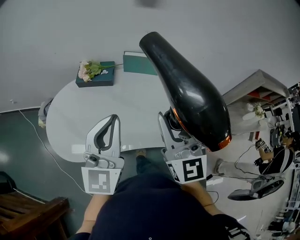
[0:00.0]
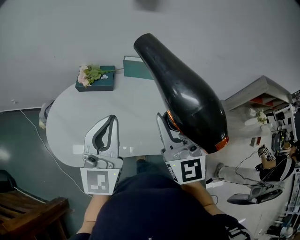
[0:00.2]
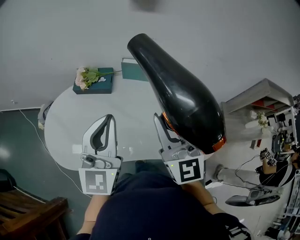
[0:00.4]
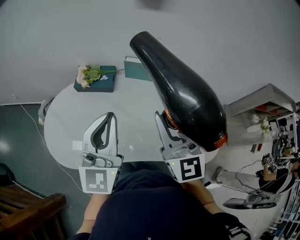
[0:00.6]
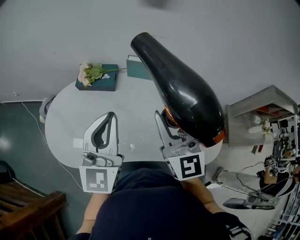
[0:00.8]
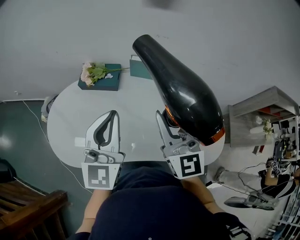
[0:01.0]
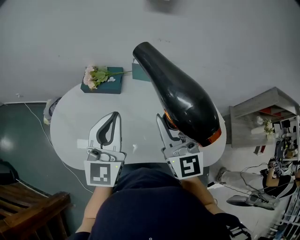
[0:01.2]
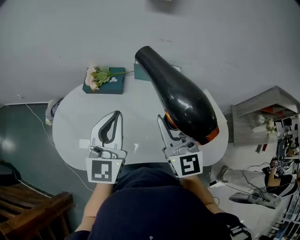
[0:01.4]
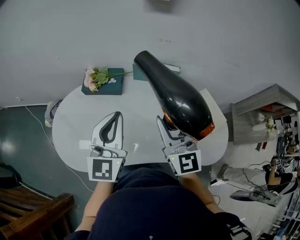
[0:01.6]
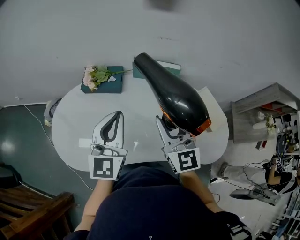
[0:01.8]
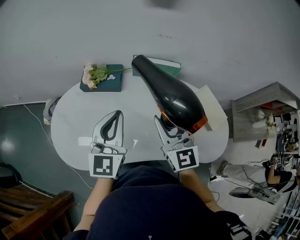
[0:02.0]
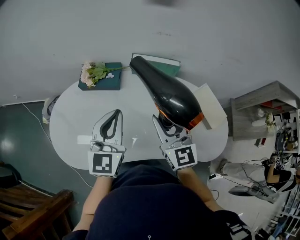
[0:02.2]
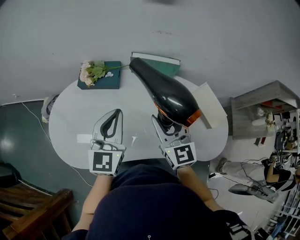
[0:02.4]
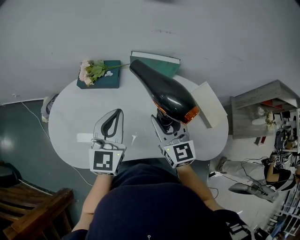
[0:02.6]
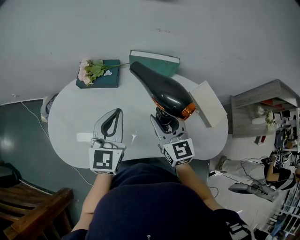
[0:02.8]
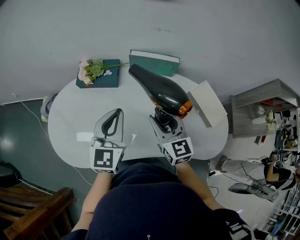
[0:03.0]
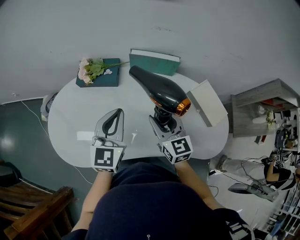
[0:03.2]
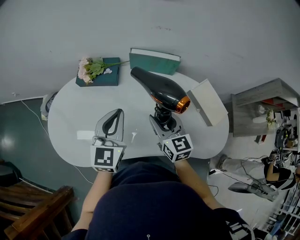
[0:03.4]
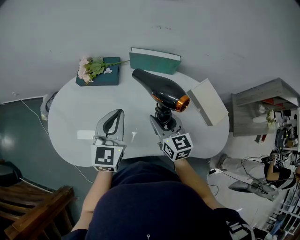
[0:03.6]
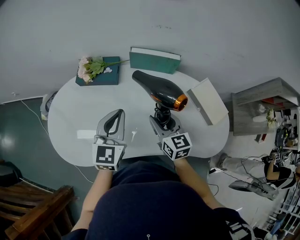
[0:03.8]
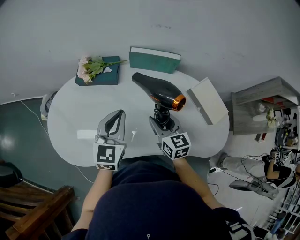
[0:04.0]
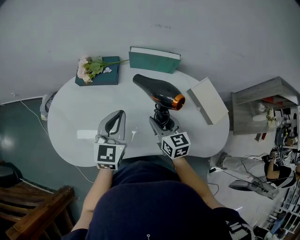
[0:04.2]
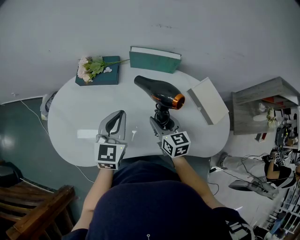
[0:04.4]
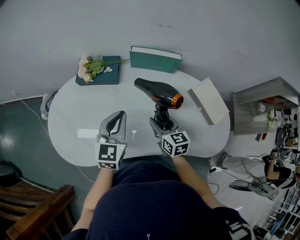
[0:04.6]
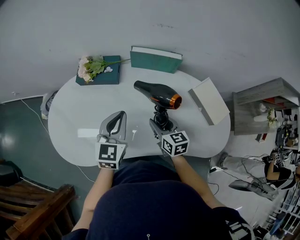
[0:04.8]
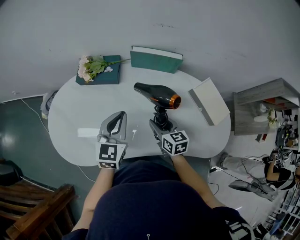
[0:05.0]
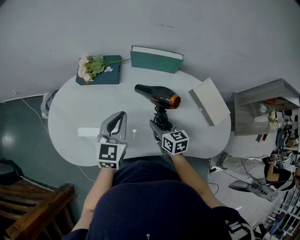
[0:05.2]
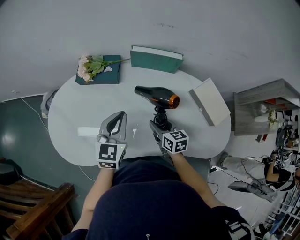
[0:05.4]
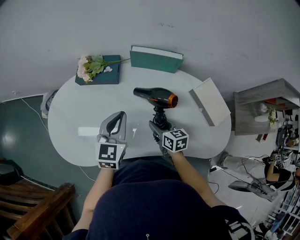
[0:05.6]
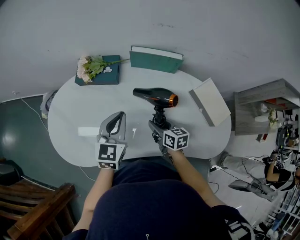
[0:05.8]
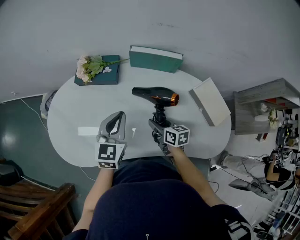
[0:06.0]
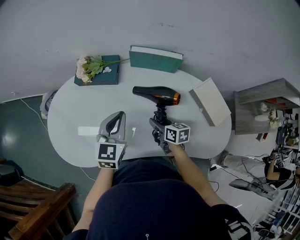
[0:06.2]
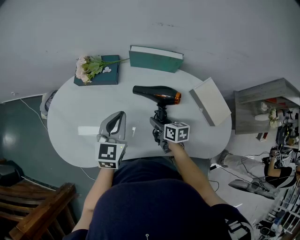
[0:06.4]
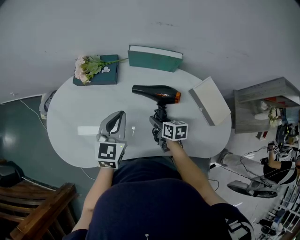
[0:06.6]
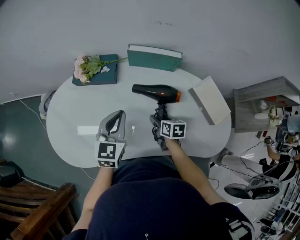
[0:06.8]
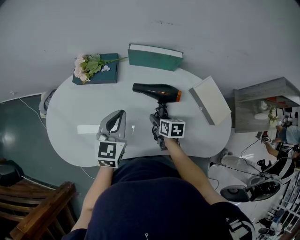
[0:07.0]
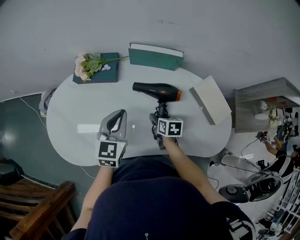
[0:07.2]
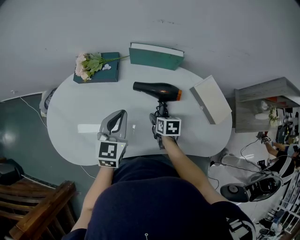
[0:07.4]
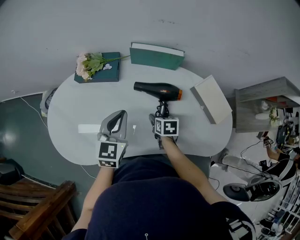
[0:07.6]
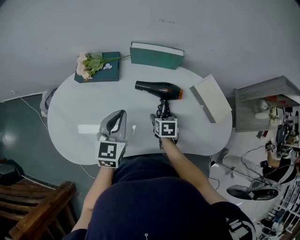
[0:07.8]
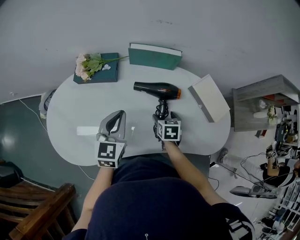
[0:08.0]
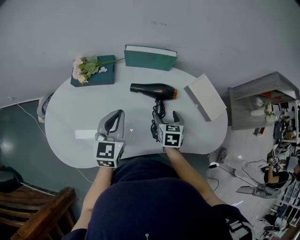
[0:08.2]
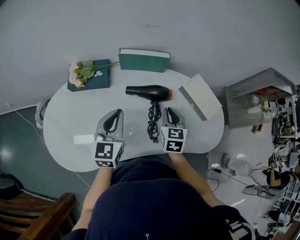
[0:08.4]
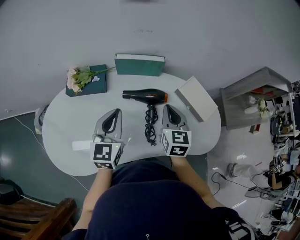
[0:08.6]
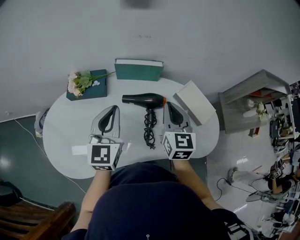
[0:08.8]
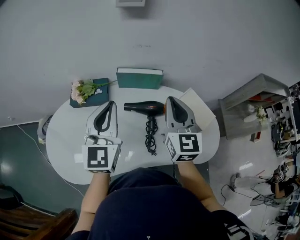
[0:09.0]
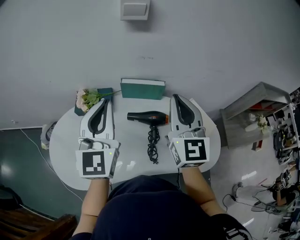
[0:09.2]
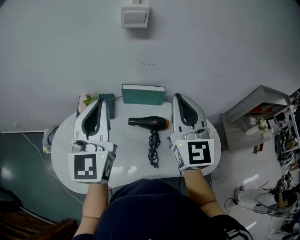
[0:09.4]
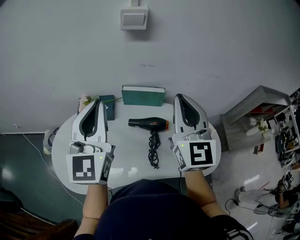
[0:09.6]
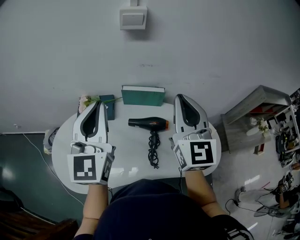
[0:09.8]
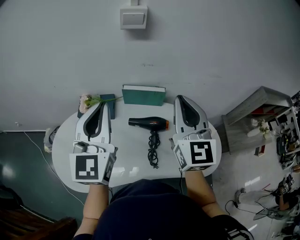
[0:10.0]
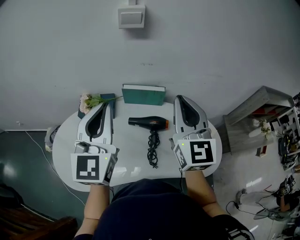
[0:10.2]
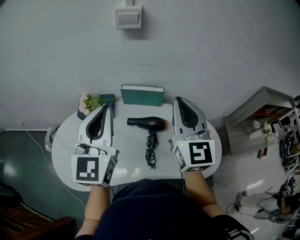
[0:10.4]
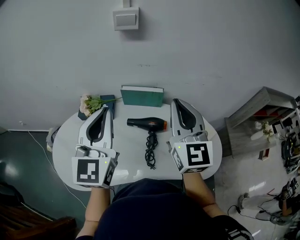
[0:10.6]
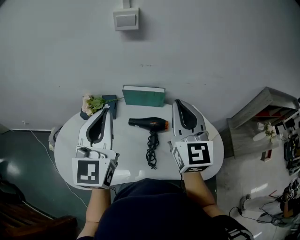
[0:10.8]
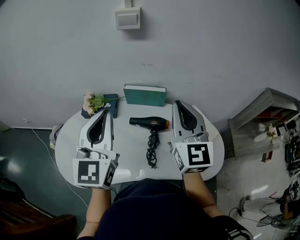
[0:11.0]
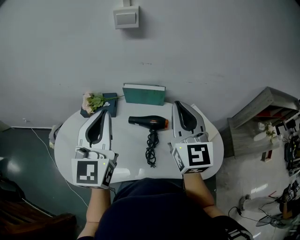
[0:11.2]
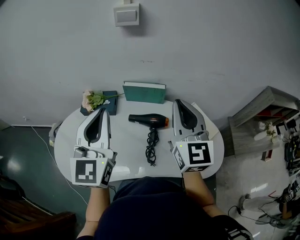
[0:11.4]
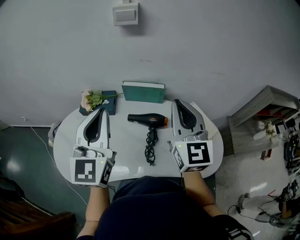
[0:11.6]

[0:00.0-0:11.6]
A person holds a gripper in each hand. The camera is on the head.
0:00.0 to 0:01.4: The left gripper goes about 10 cm forward; the right gripper travels forward and downward by roughly 15 cm.
0:01.4 to 0:02.8: The left gripper shifts roughly 5 cm downward; the right gripper heads downward, covering about 10 cm.
0:02.8 to 0:04.4: The right gripper shifts some 10 cm downward; the left gripper shifts about 5 cm downward.
0:04.4 to 0:05.8: The right gripper moves downward, about 10 cm.
0:05.8 to 0:07.2: The right gripper ends up roughly 5 cm from where it was, and changes its angle by approximately 20 degrees.
0:07.2 to 0:08.8: The left gripper travels upward by about 10 cm; the right gripper moves upward, approximately 25 cm, points its fingers approximately 40 degrees further upward, and closes its fingers.
0:08.8 to 0:10.2: The grippers both shift upward by roughly 15 cm. The right gripper turns by roughly 20 degrees.
0:10.2 to 0:11.6: The grippers make only small movements.

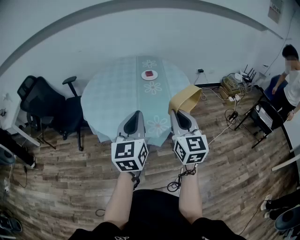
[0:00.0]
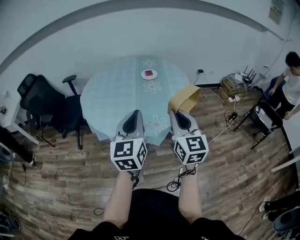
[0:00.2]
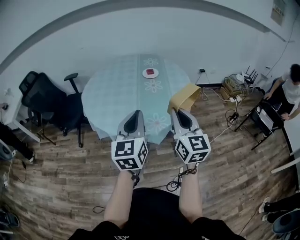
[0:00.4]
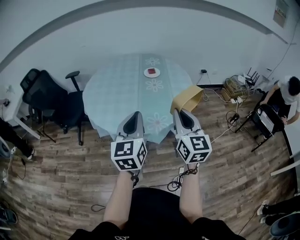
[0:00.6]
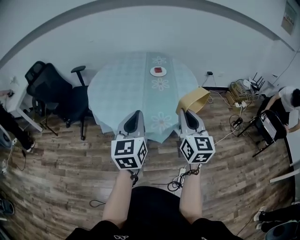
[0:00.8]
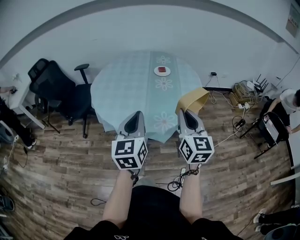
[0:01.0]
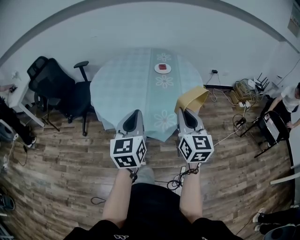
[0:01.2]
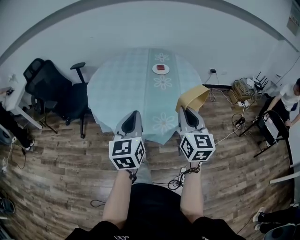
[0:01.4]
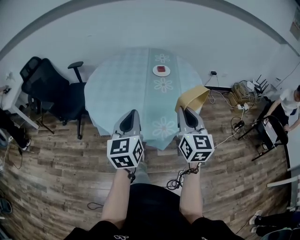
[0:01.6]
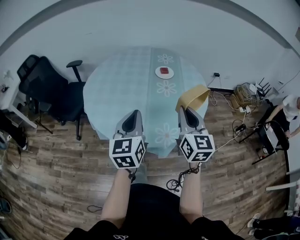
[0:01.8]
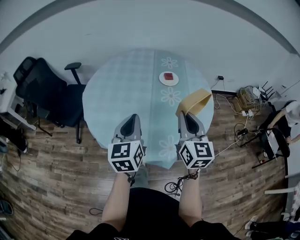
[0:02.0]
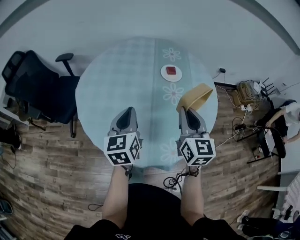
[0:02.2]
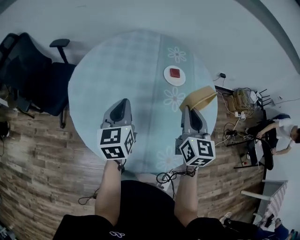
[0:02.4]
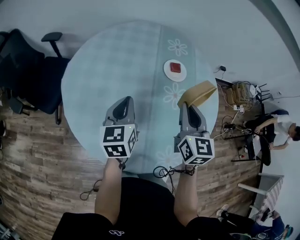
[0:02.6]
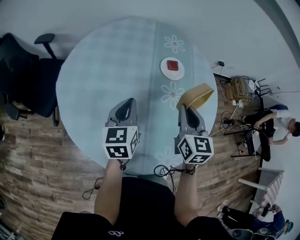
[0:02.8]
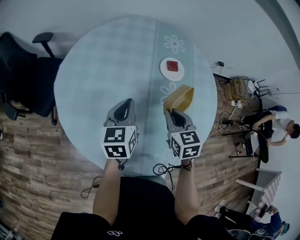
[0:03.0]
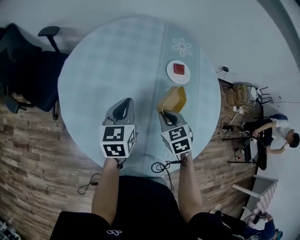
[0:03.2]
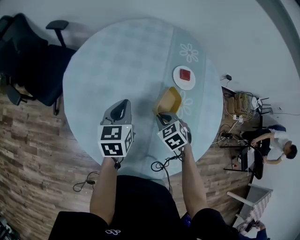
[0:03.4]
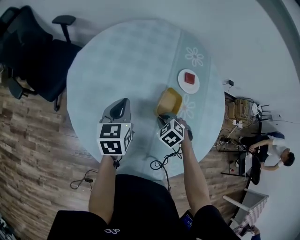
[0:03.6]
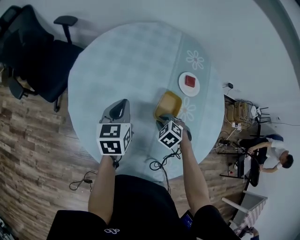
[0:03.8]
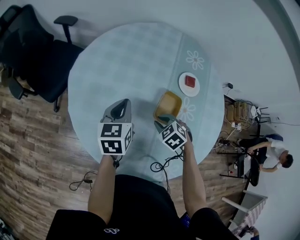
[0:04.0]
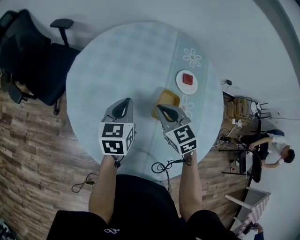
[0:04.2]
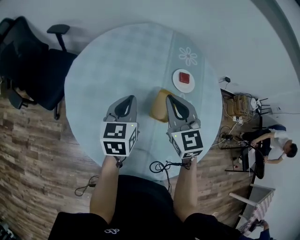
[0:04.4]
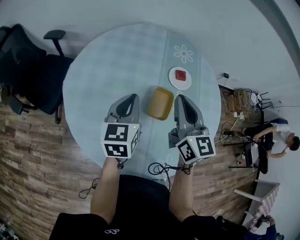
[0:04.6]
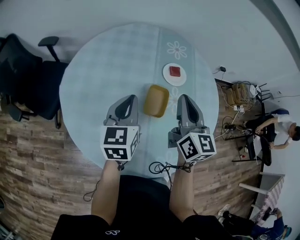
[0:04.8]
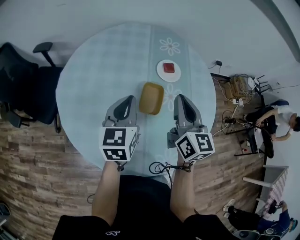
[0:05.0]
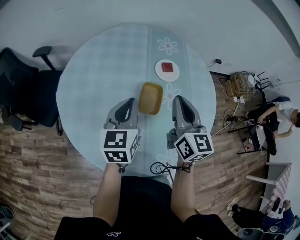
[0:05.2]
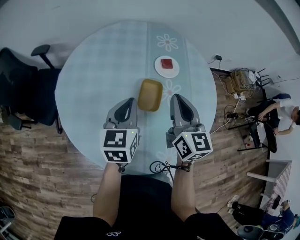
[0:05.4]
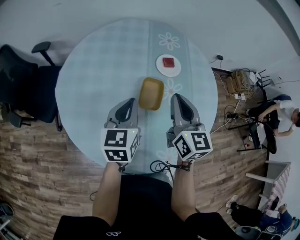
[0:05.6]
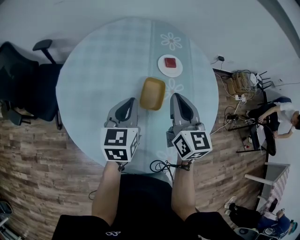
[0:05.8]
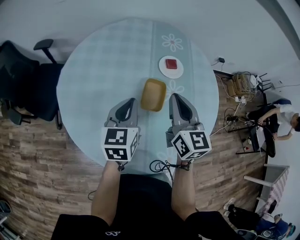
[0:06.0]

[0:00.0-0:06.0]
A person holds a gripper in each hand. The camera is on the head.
0:00.0 to 0:01.6: The right gripper travels forward by about 10 cm, while the left gripper travels forward, downward and to the left by some 10 cm.
0:01.6 to 0:03.0: The right gripper moves forward and downward, approximately 40 cm, and tilts its fingers roughly 40 degrees downward, while the left gripper travels forward by approximately 40 cm, and swivels about 20 degrees.
0:03.0 to 0:04.4: The left gripper travels to the left by approximately 5 cm. The right gripper is displaced upward, to the left and forward by roughly 15 cm, and swivels about 30 degrees.
0:04.4 to 0:06.0: The grippers both shift to the right by approximately 10 cm. The right gripper turns by roughly 30 degrees.

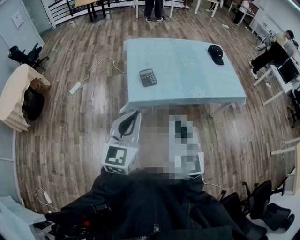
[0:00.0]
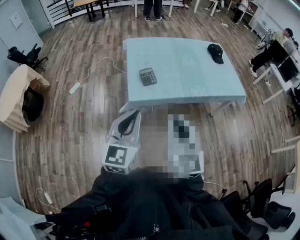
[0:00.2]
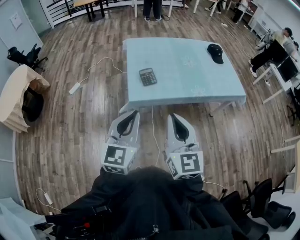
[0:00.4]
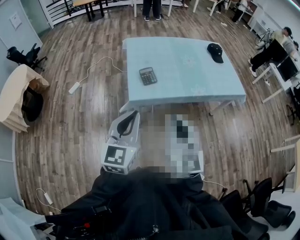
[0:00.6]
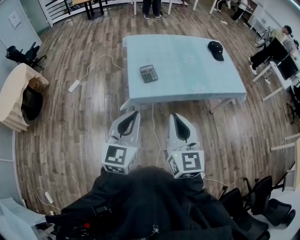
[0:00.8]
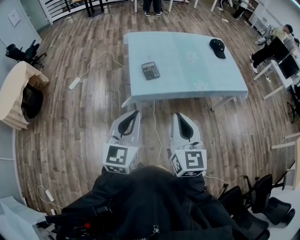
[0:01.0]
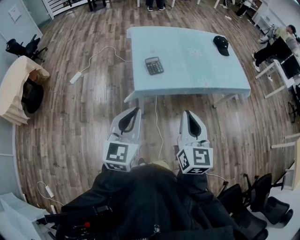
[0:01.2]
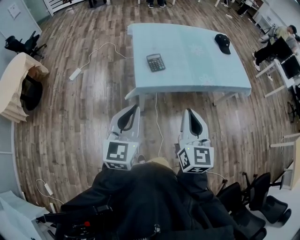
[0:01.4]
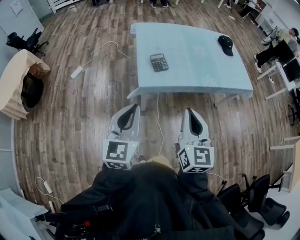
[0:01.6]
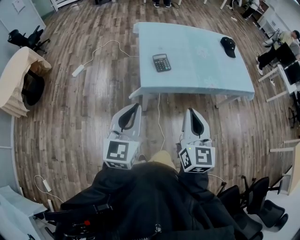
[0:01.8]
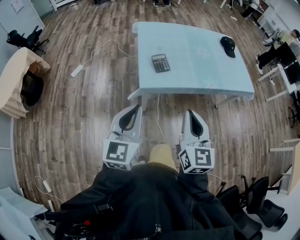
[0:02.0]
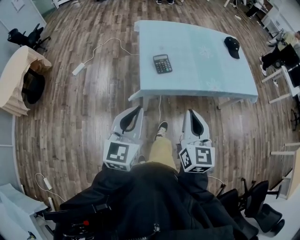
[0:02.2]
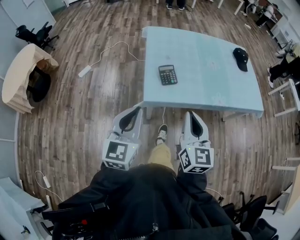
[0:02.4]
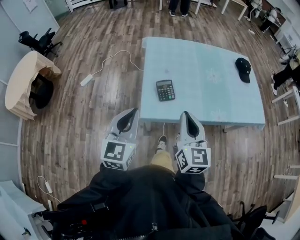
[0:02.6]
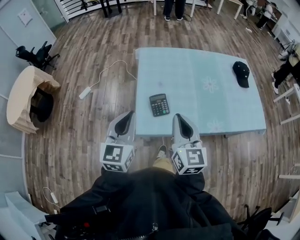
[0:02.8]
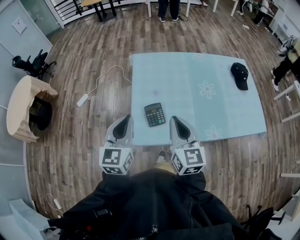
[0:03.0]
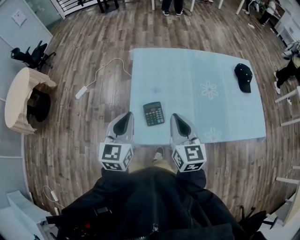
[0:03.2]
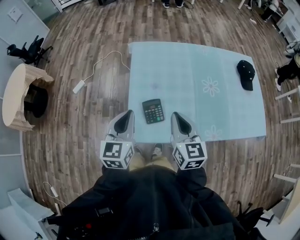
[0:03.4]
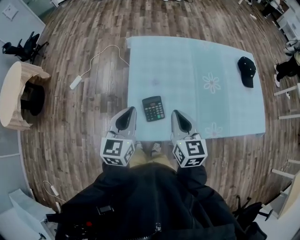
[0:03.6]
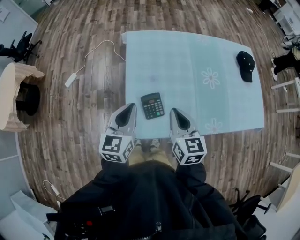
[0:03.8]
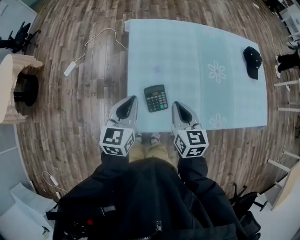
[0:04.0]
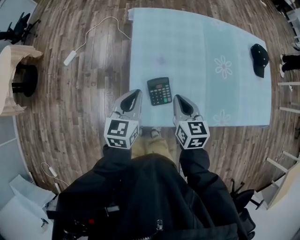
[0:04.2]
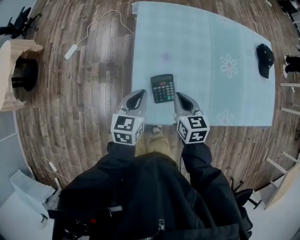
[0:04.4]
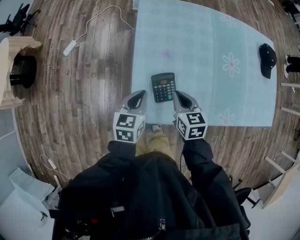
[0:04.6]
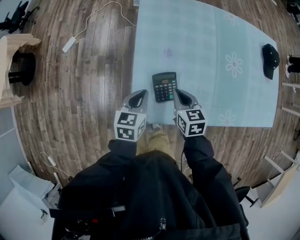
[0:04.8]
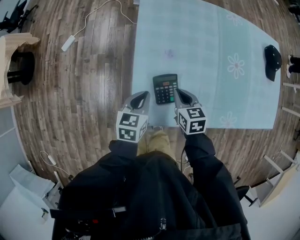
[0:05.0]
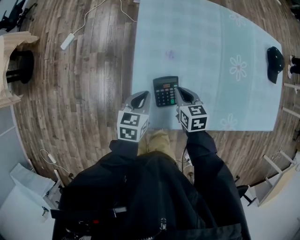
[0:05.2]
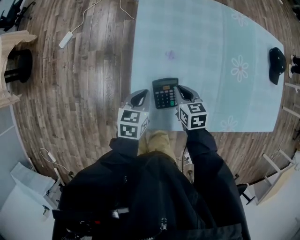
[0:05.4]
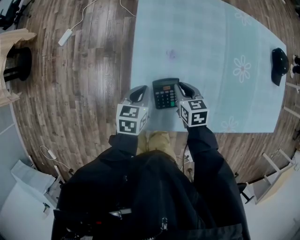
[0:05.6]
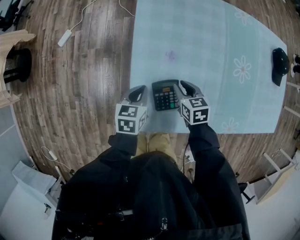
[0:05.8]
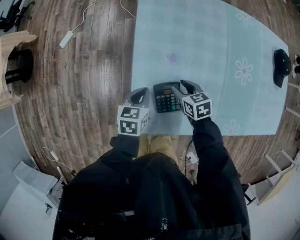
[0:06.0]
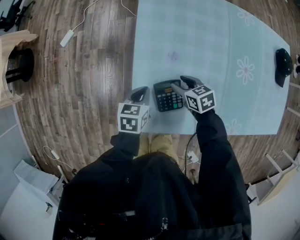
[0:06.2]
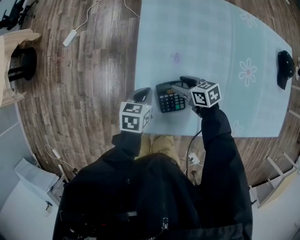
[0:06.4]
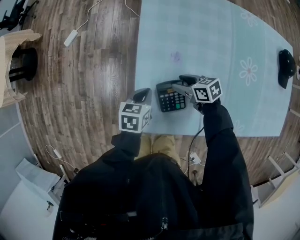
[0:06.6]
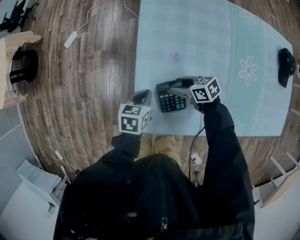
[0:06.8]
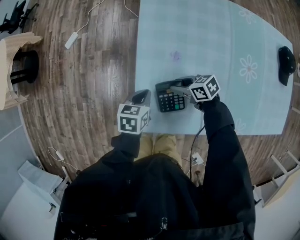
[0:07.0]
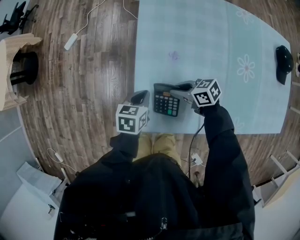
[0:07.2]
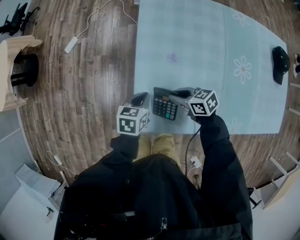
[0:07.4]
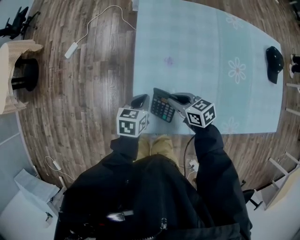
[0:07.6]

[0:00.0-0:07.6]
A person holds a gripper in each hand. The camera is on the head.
0:00.0 to 0:01.6: The left gripper heads to the left, covering approximately 10 cm; the right gripper goes some 5 cm downward.
0:01.6 to 0:03.0: Both grippers travel together forward, some 35 cm.
0:03.0 to 0:04.6: The left gripper is displaced downward by roughly 25 cm, and turns by some 30 degrees. Meanwhile the right gripper goes roughly 25 cm downward and forward, and tilts its fingers about 30 degrees downward.
0:04.6 to 0:06.0: Both grippers travel together downward and forward, some 15 cm. The right gripper changes its angle by approximately 20 degrees, and opens up.
0:06.0 to 0:07.6: The right gripper is displaced upward by about 5 cm, and closes its fingers.
